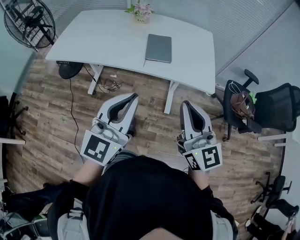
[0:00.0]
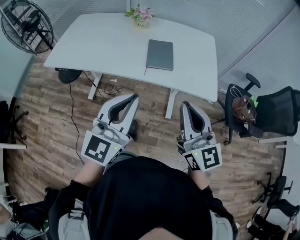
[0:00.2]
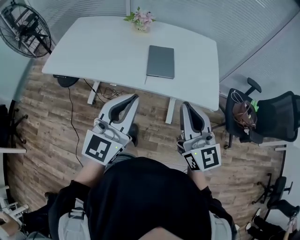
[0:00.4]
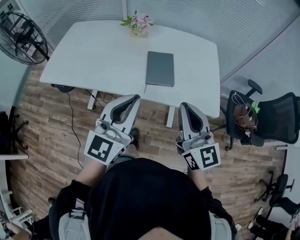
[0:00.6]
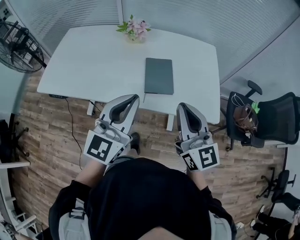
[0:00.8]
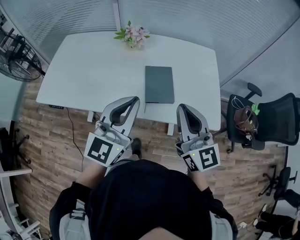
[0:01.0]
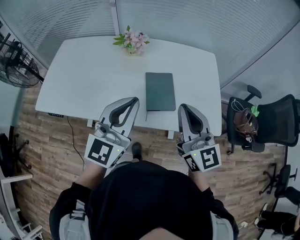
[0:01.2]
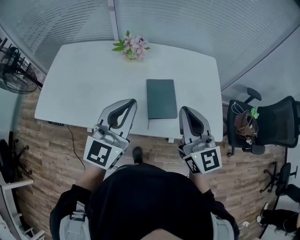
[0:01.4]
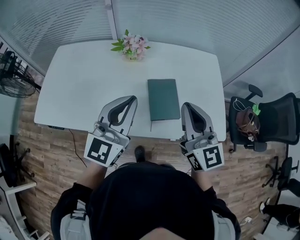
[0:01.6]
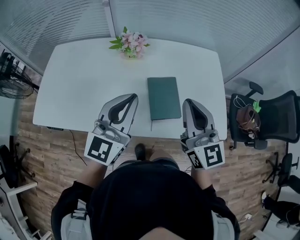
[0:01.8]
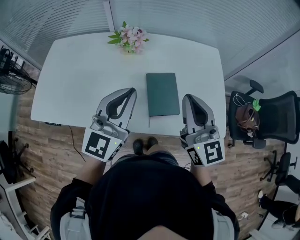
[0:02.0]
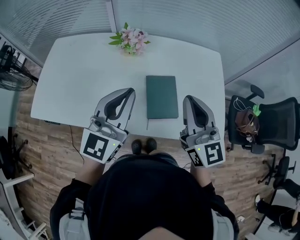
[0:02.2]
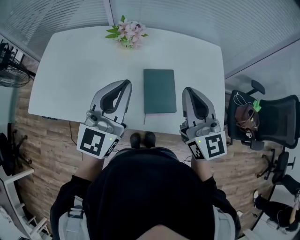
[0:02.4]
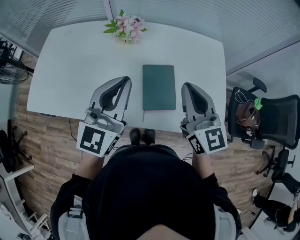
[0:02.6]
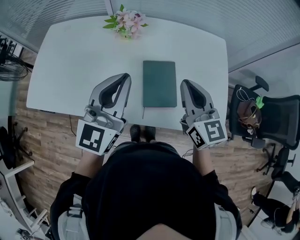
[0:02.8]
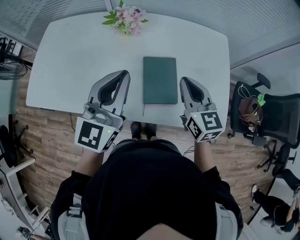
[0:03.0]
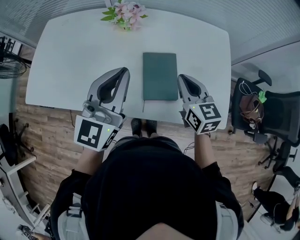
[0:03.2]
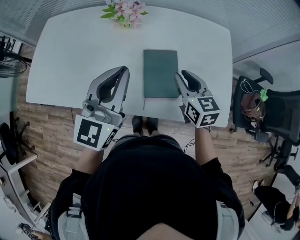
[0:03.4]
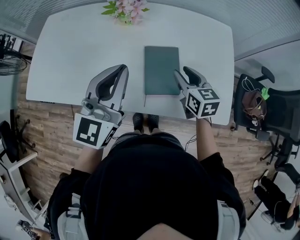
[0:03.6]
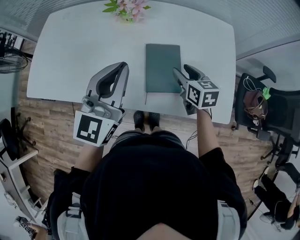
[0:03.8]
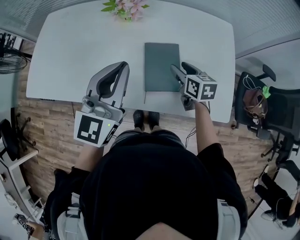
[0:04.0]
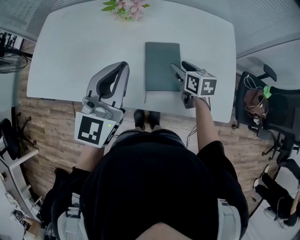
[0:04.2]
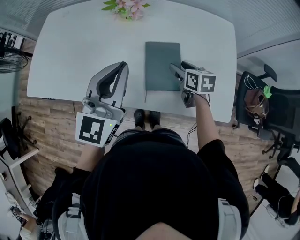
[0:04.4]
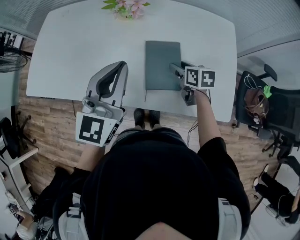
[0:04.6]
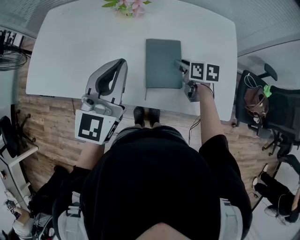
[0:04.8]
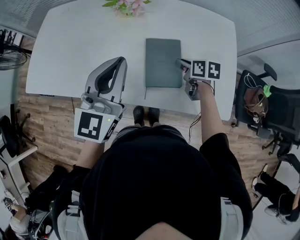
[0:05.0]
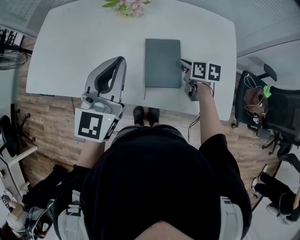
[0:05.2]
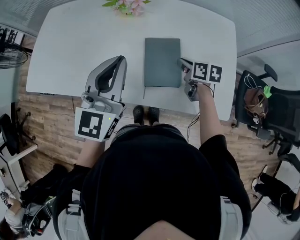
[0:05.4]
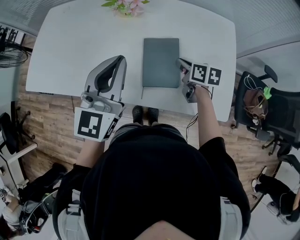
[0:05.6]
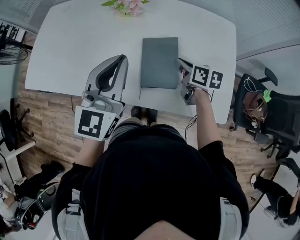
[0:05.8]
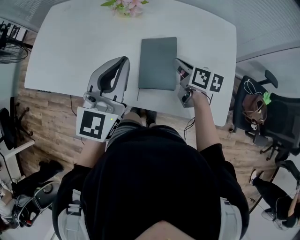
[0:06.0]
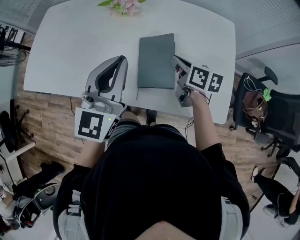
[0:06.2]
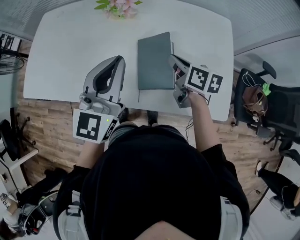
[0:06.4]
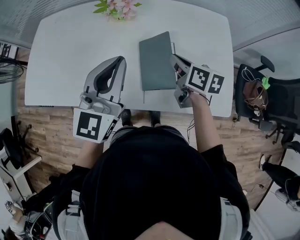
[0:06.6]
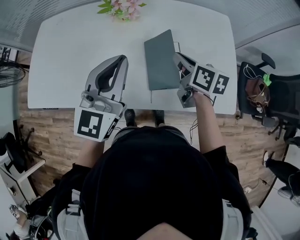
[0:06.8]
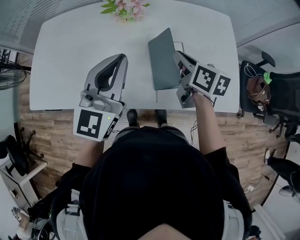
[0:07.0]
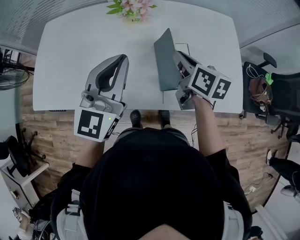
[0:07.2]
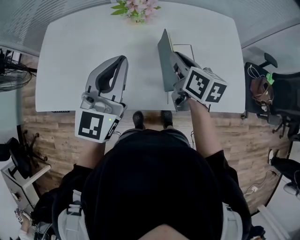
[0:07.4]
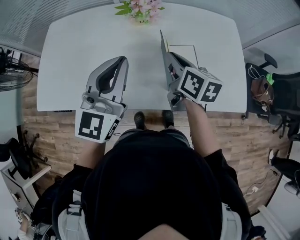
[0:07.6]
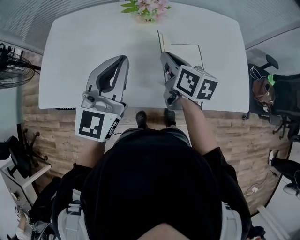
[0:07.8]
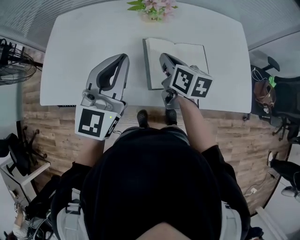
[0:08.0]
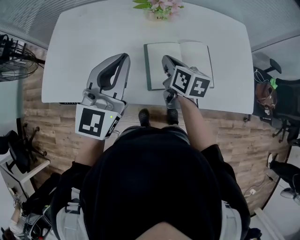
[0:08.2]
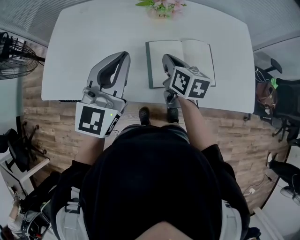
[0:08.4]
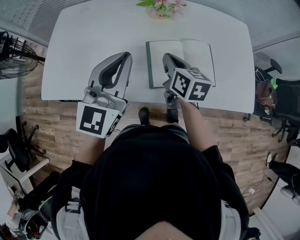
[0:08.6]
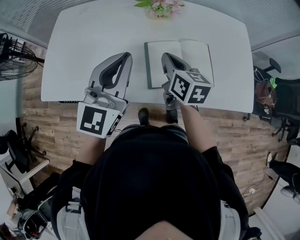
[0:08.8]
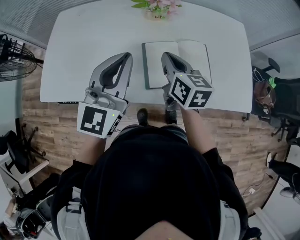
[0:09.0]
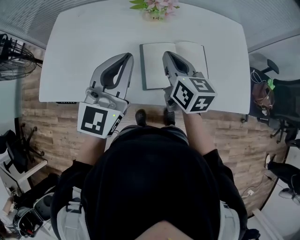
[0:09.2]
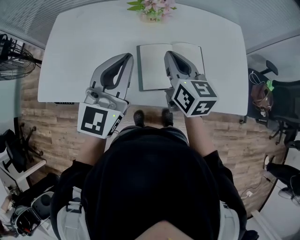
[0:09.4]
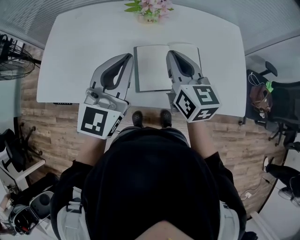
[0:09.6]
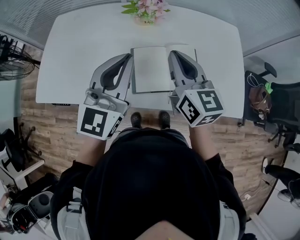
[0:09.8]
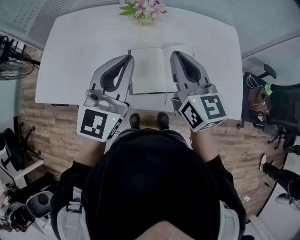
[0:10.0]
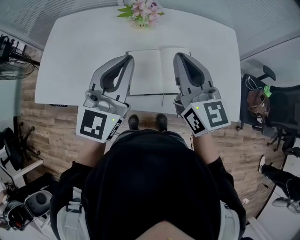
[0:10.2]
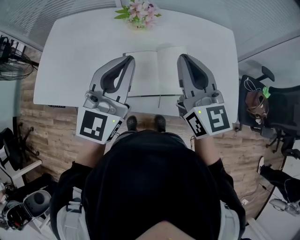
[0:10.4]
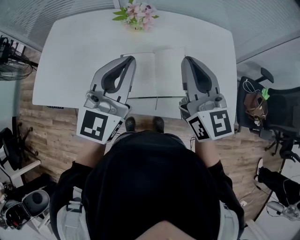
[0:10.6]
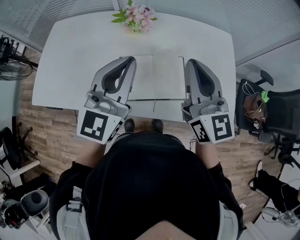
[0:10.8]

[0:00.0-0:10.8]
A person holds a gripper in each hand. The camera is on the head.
0:00.0 to 0:01.6: The two grippers go approximately 30 cm forward.
0:01.6 to 0:03.0: The right gripper travels downward and forward by some 15 cm, and rotates some 20 degrees.
0:03.0 to 0:04.6: The right gripper is displaced downward by roughly 20 cm, tips its fingers downward by about 30 degrees, and opens up.
0:04.6 to 0:06.2: The right gripper shifts some 5 cm upward, and closes its fingers.
0:06.2 to 0:07.8: The left gripper heads to the left, covering some 15 cm; the right gripper is displaced to the left and upward by roughly 20 cm.
0:07.8 to 0:09.2: The right gripper reaches approximately 5 cm downward, then returns.
0:09.2 to 0:10.8: The left gripper travels to the right by some 10 cm; the right gripper heads to the right and upward, covering about 20 cm, and turns by some 30 degrees.

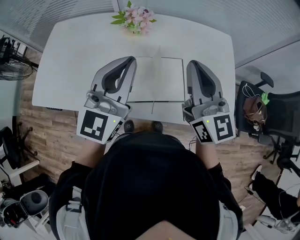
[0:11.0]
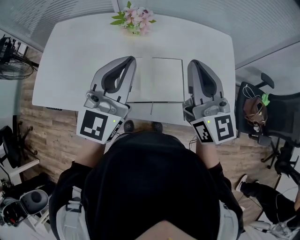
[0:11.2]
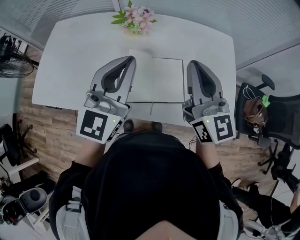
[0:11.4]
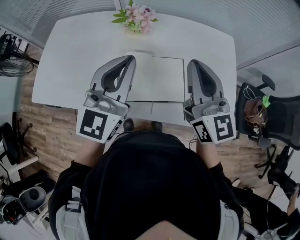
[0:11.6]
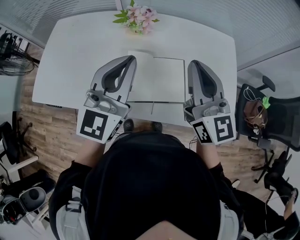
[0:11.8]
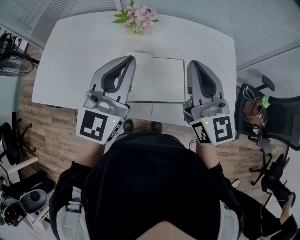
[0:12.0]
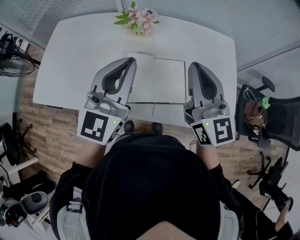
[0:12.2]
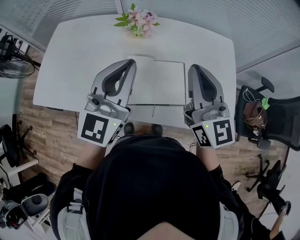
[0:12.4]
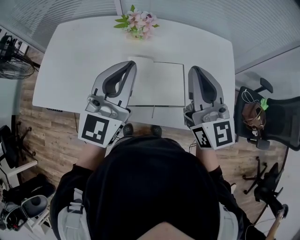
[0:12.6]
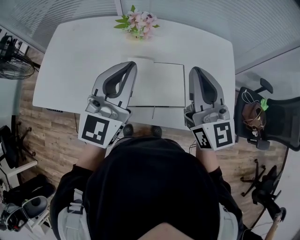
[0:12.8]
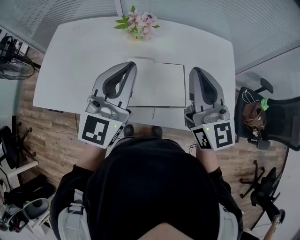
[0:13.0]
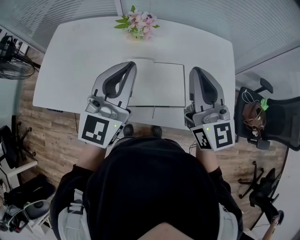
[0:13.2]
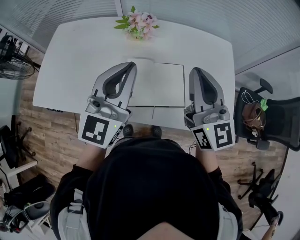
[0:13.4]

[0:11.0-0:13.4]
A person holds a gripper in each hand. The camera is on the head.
0:11.0 to 0:13.4: Both grippers stay about where they are.

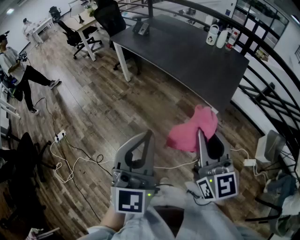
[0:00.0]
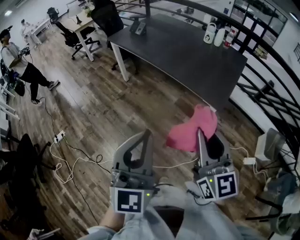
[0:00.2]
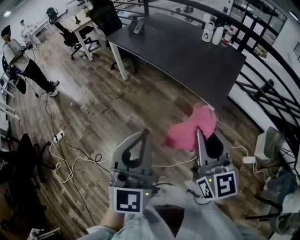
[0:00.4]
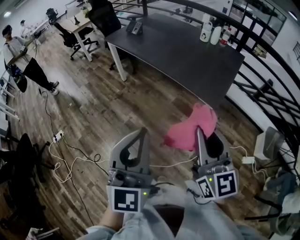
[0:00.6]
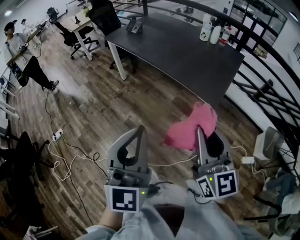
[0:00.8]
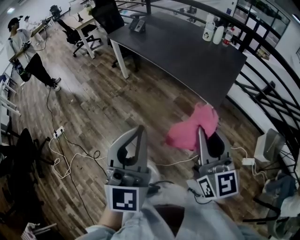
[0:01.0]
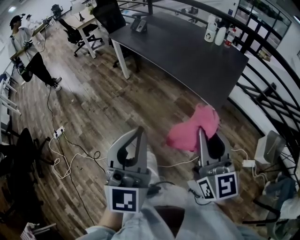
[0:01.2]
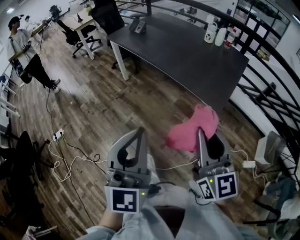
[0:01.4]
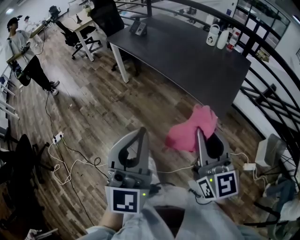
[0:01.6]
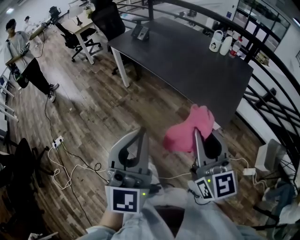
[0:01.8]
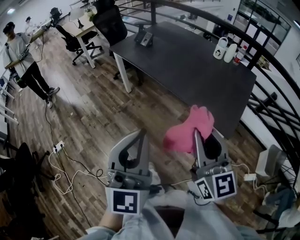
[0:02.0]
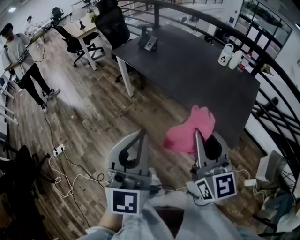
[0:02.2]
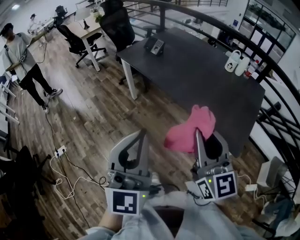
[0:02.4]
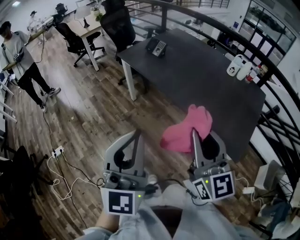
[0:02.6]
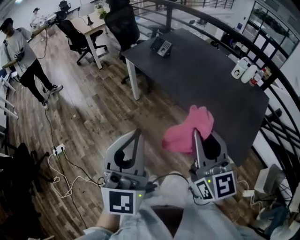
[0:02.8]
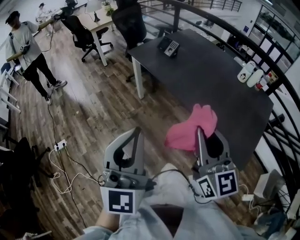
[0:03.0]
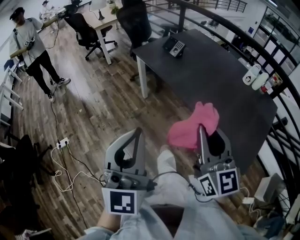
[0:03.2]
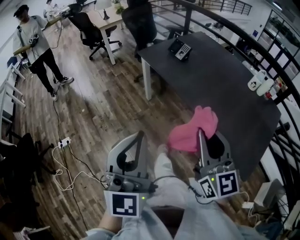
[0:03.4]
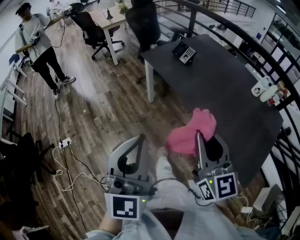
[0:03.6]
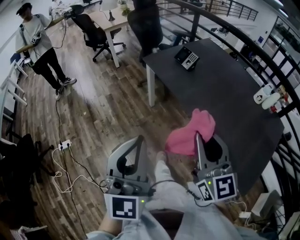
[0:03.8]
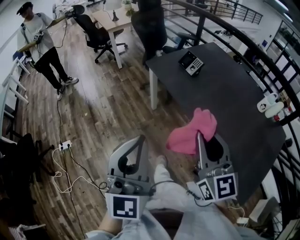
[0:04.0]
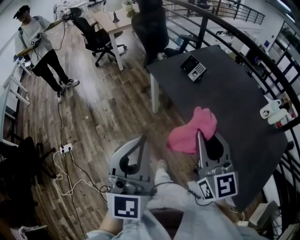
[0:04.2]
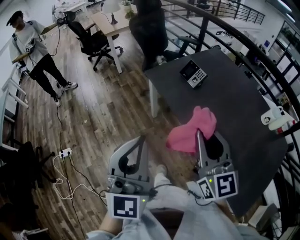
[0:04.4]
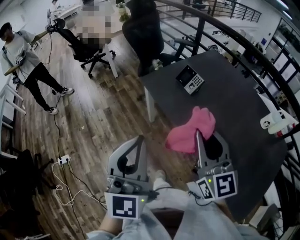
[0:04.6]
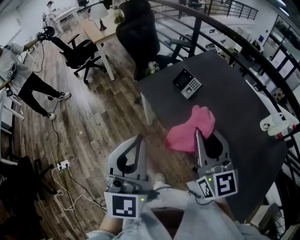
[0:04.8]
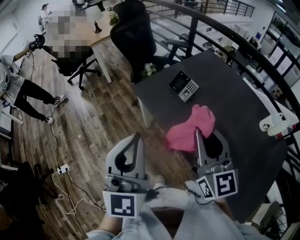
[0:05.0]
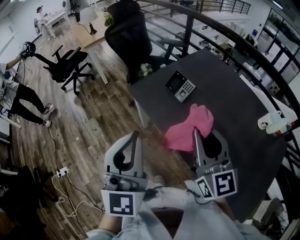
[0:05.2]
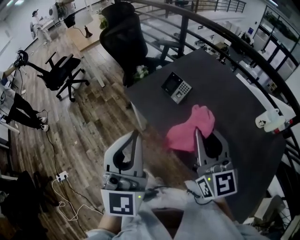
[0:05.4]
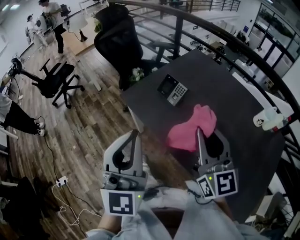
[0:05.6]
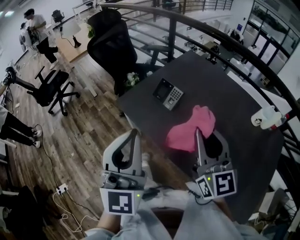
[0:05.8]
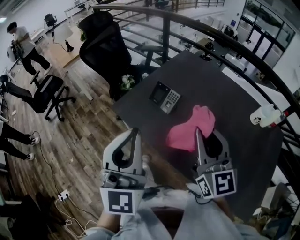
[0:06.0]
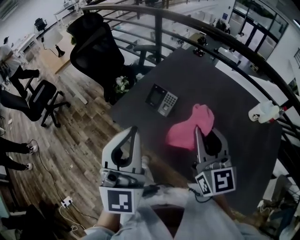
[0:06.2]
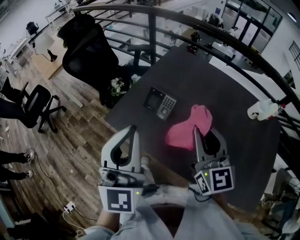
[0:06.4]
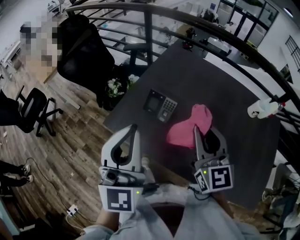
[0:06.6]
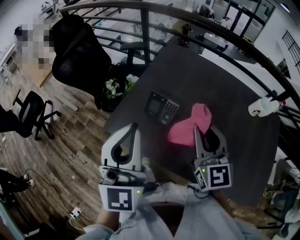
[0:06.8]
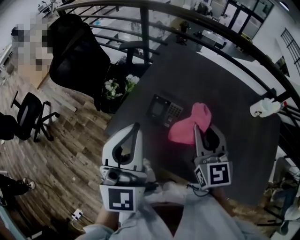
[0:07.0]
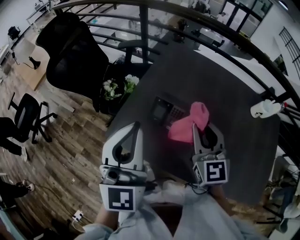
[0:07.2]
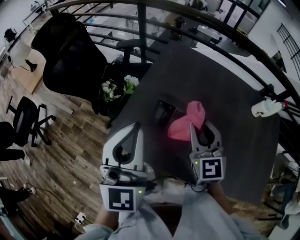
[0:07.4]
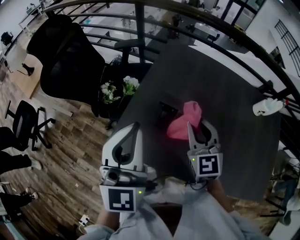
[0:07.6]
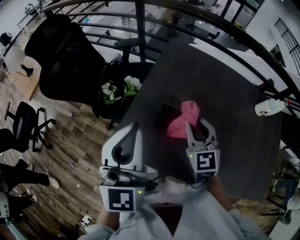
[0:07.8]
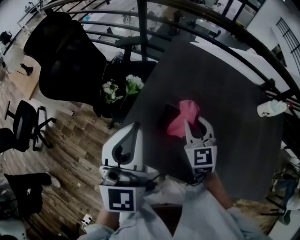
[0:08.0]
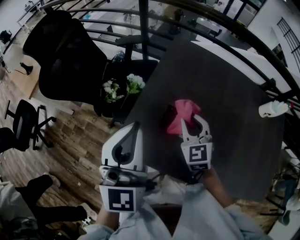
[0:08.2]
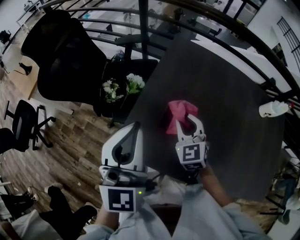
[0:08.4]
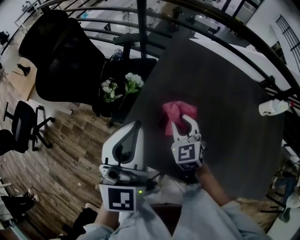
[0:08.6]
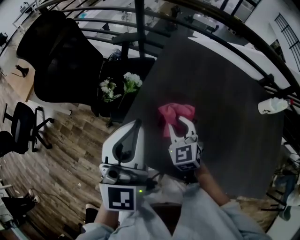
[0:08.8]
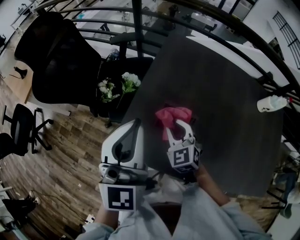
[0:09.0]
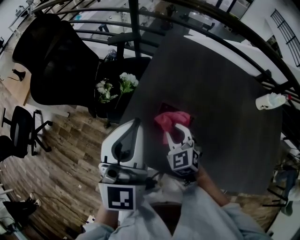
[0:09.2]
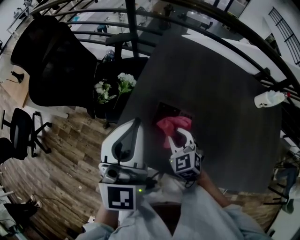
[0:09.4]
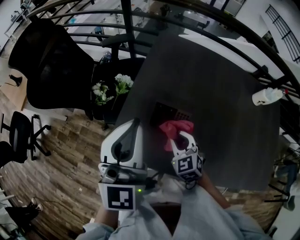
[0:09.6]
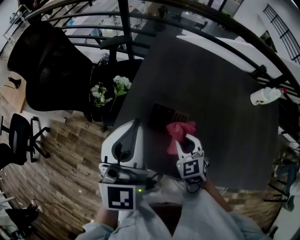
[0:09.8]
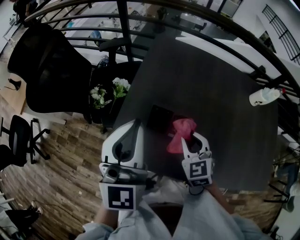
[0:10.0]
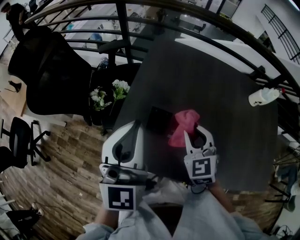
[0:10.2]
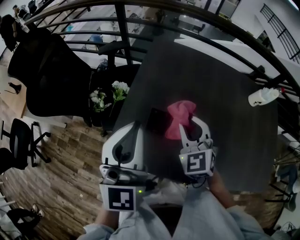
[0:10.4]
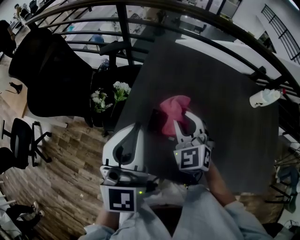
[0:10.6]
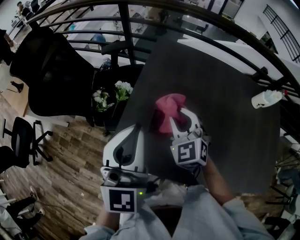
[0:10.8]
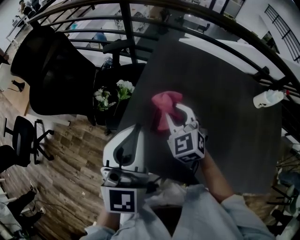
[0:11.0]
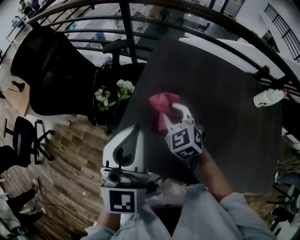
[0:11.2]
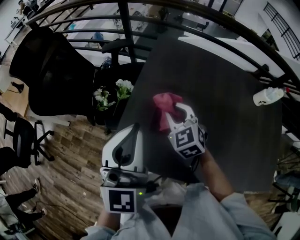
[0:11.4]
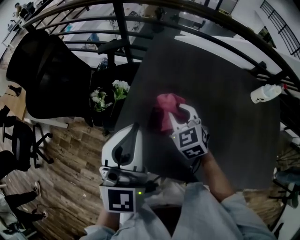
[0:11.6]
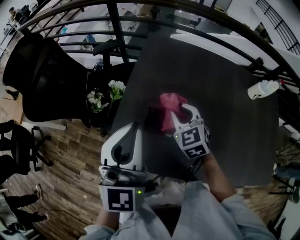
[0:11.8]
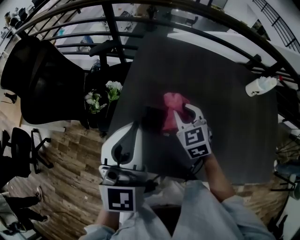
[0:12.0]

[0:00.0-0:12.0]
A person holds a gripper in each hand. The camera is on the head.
0:00.0 to 0:01.6: The grippers both shift forward by roughly 5 cm.
0:01.6 to 0:03.0: Both grippers travel together forward and to the left, approximately 30 cm.
0:03.0 to 0:04.4: Both grippers travel together forward, some 25 cm.
0:04.4 to 0:06.0: The right gripper shifts roughly 20 cm forward and to the right. The left gripper shifts approximately 25 cm forward.
0:06.0 to 0:07.6: The left gripper shifts approximately 25 cm forward and to the left, while the right gripper moves forward, downward and to the left, about 25 cm, and swivels roughly 30 degrees.
0:07.6 to 0:09.0: The left gripper changes place by some 5 cm, while the right gripper moves downward and to the left, roughly 15 cm, and changes its angle by approximately 20 degrees.
0:09.0 to 0:10.4: The right gripper heads upward and to the right, covering about 10 cm.
0:10.4 to 0:12.0: The right gripper shifts approximately 5 cm downward, and travels to the left and back again, roughly 10 cm each way.
